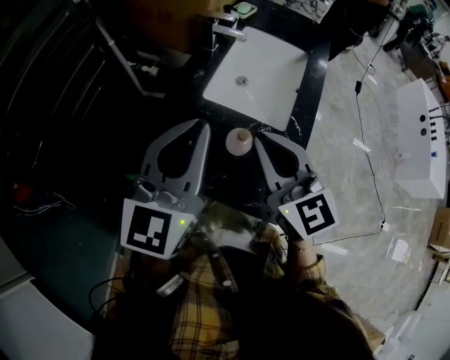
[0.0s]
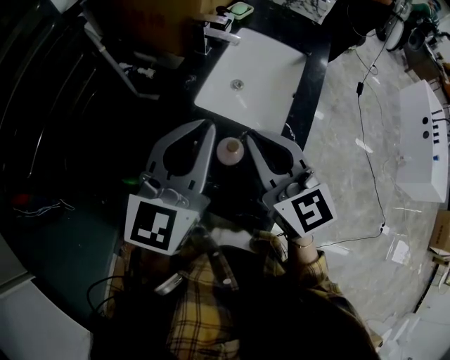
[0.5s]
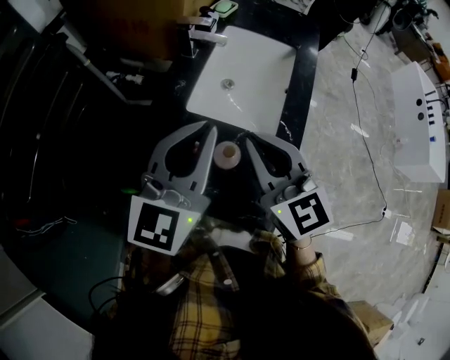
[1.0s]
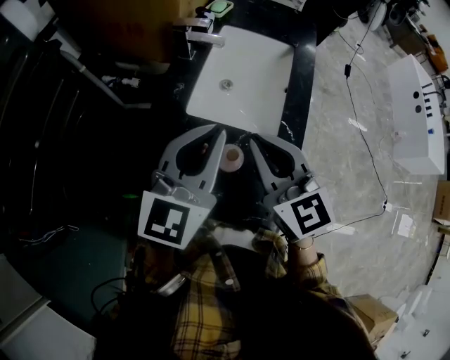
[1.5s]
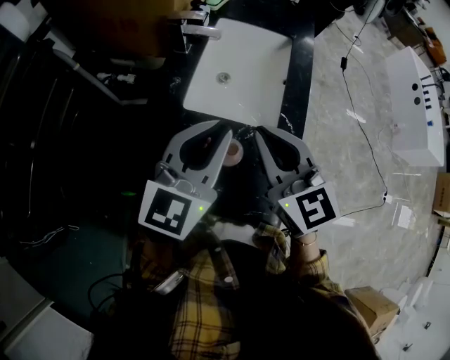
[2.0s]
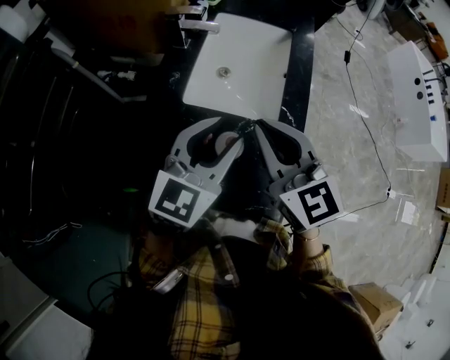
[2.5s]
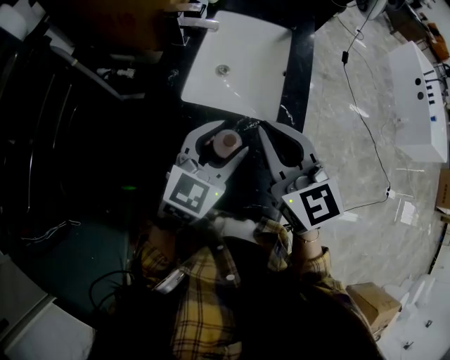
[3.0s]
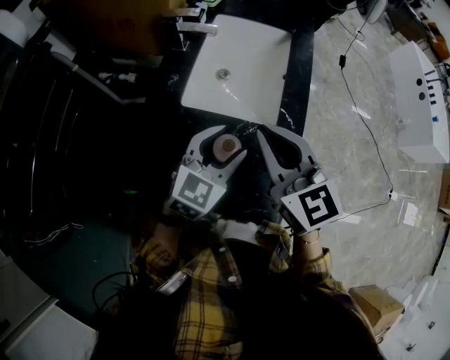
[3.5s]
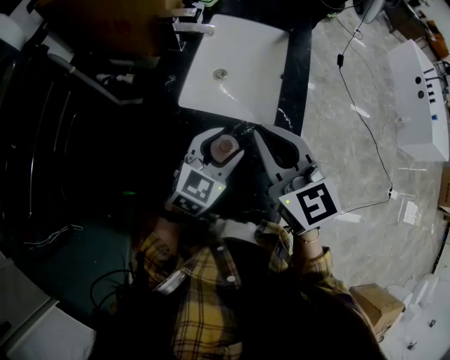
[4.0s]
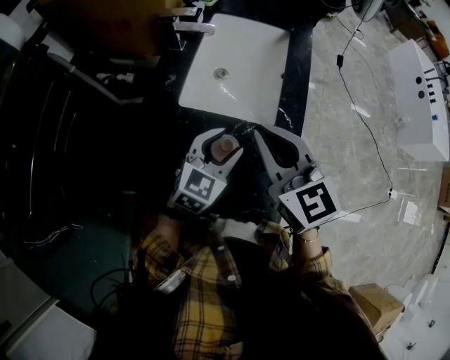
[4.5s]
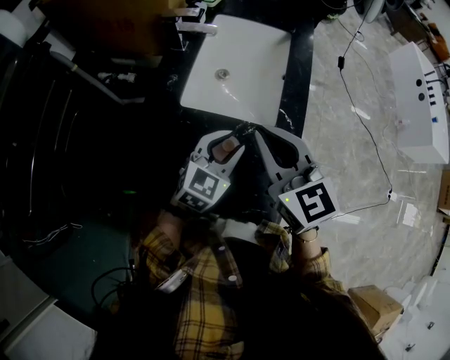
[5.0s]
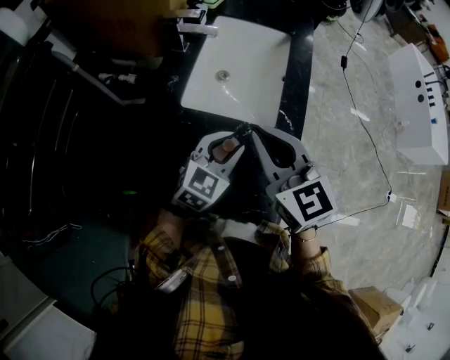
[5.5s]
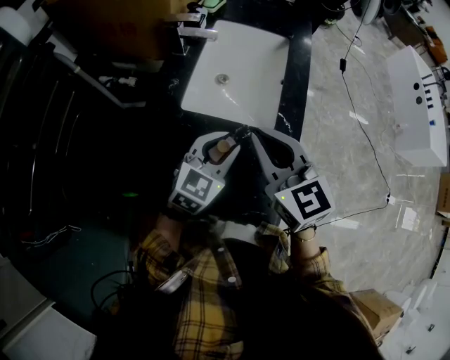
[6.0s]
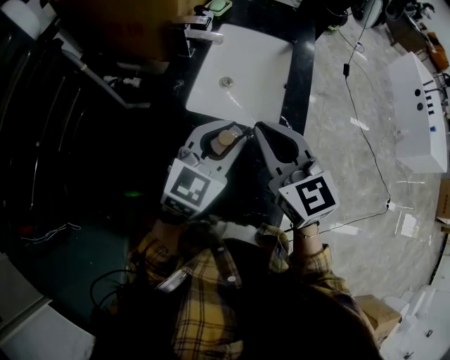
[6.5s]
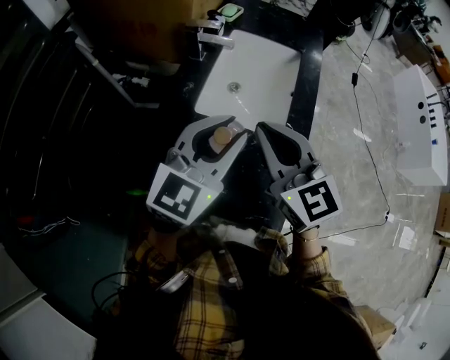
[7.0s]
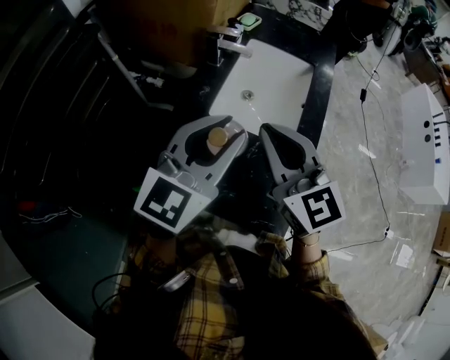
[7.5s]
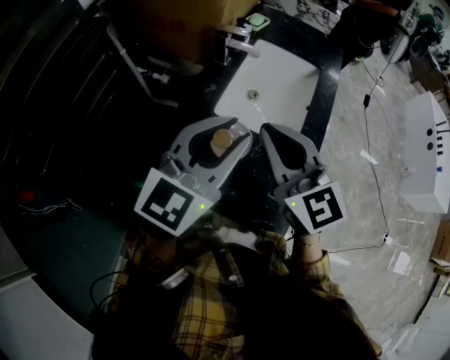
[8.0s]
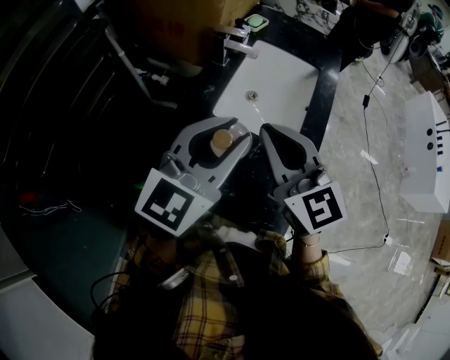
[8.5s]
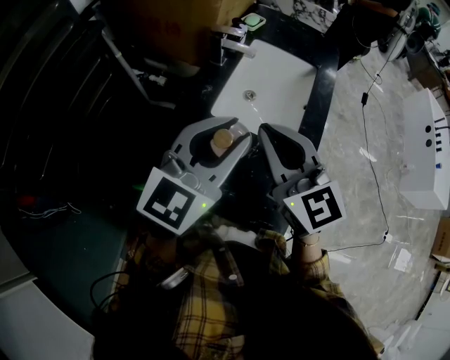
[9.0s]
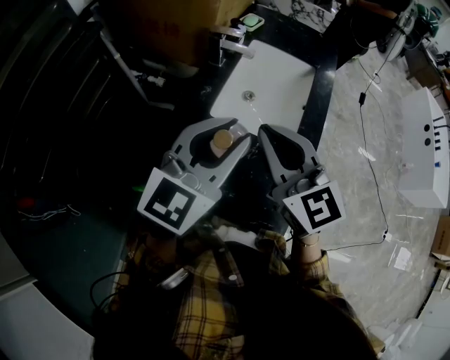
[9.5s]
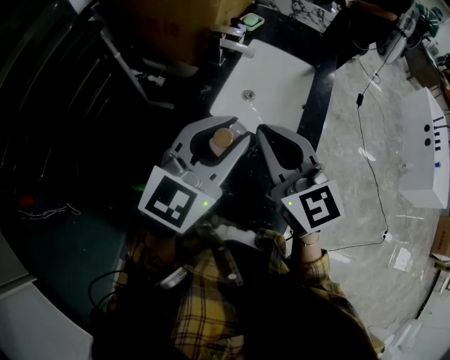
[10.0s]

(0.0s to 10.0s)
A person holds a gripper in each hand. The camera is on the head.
0.0s - 2.0s: The left gripper heads to the right, downward and forward, covering roughly 10 cm, while the right gripper goes some 5 cm forward.
2.0s - 4.0s: The left gripper goes some 15 cm downward, turns by about 20 degrees, and opens its fingers.
4.0s - 6.0s: The left gripper closes up.
6.0s - 8.0s: The right gripper is displaced upward and to the left by approximately 10 cm. Meanwhile the left gripper travels upward by about 20 cm.
8.0s - 10.0s: The two grippers keep their place.

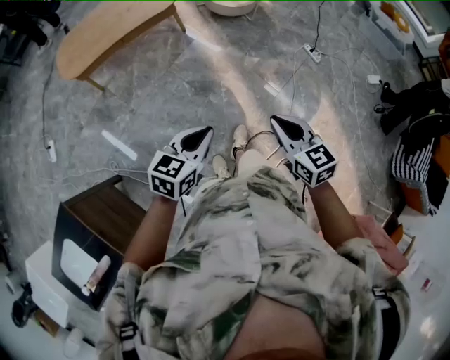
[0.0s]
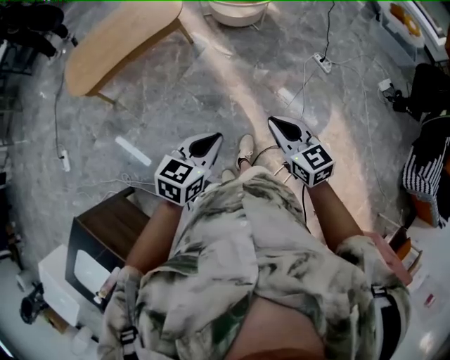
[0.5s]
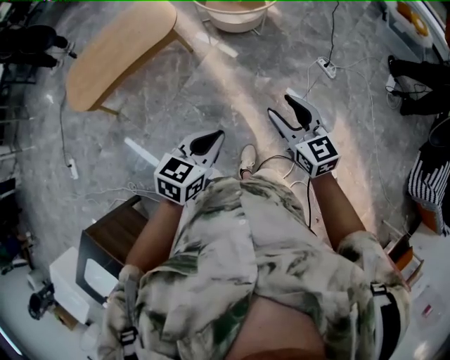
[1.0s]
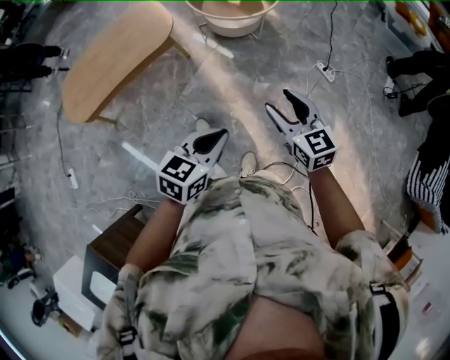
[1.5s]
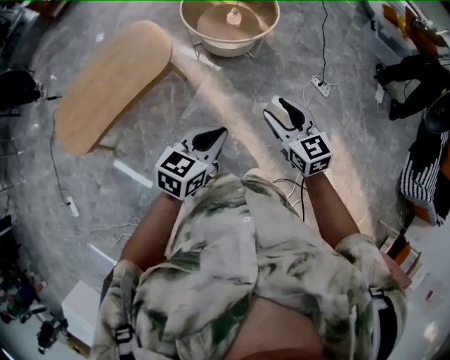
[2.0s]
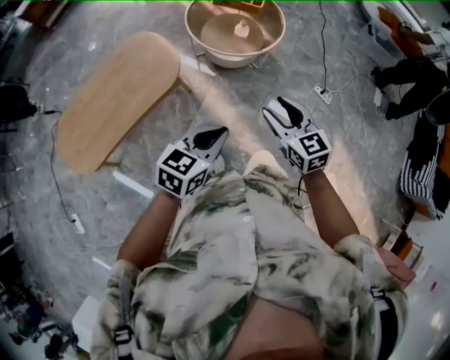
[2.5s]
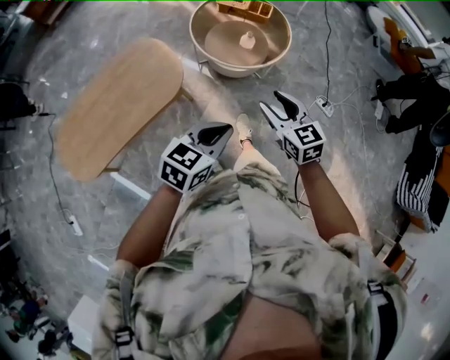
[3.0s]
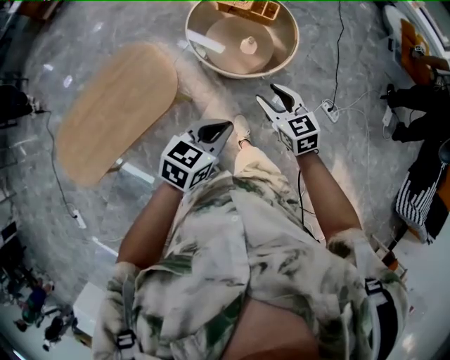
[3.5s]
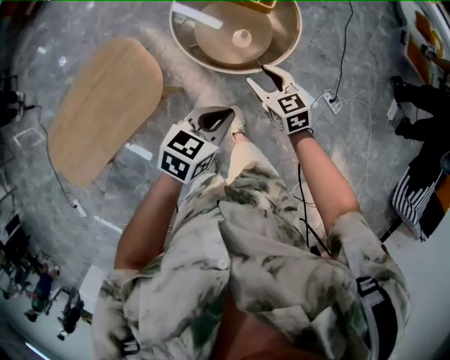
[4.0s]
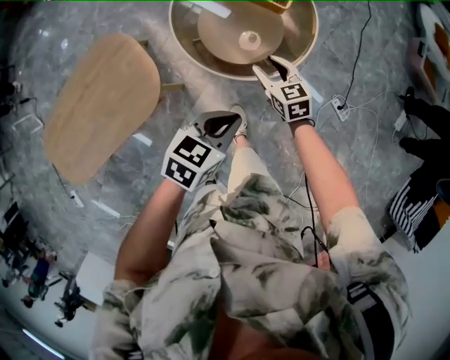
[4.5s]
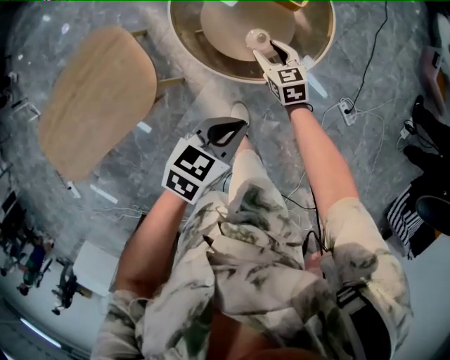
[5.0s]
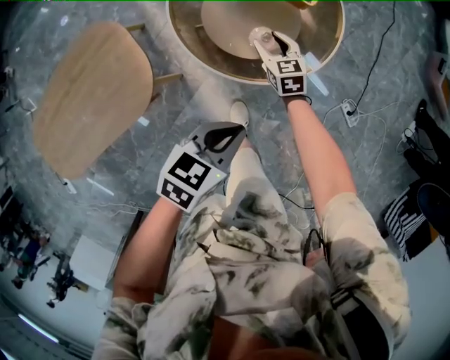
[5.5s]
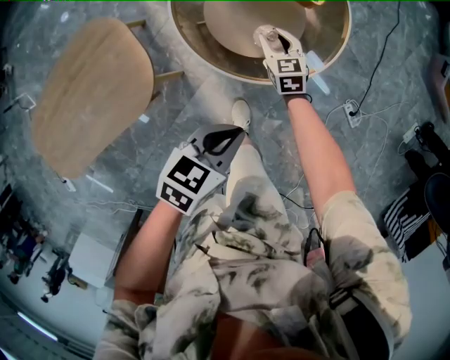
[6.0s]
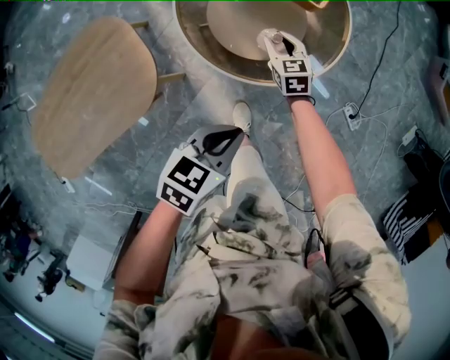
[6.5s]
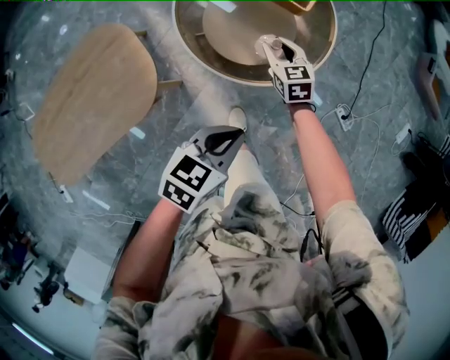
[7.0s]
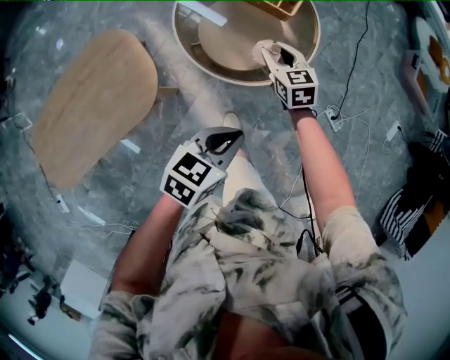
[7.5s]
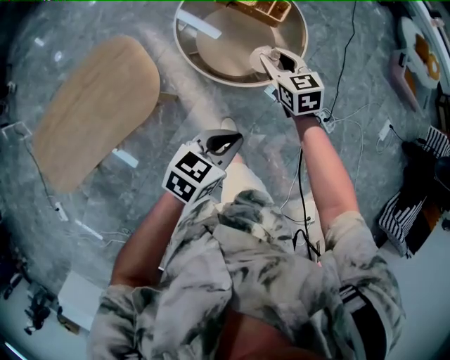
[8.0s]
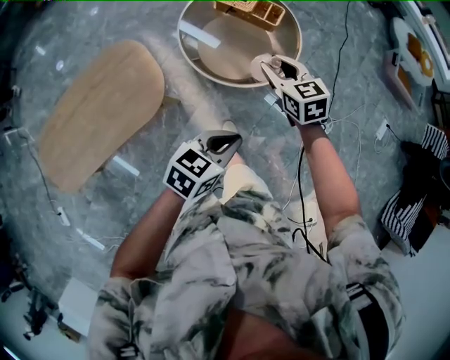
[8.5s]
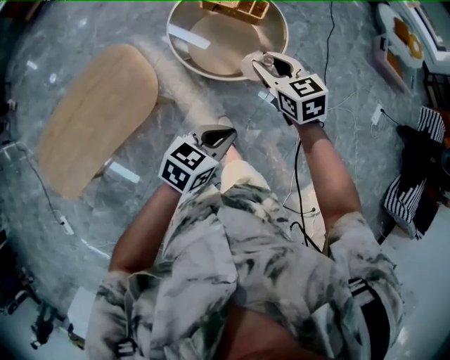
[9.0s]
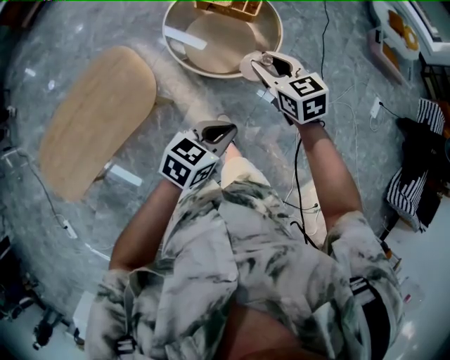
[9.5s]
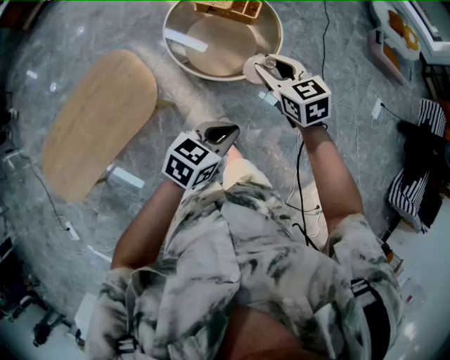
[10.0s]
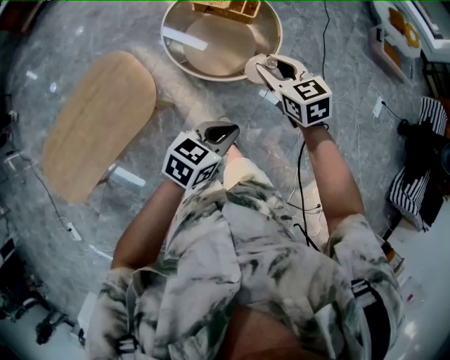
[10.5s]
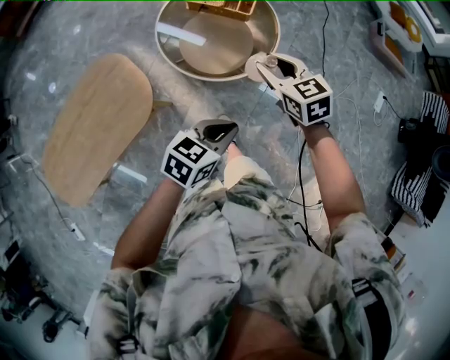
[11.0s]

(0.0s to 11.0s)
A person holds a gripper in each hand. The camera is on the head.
0.0s - 2.0s: The two grippers travel together, forward, roughly 50 cm. The right gripper opens its fingers.
2.0s - 3.5s: Both grippers move forward, roughly 35 cm.
3.5s - 5.5s: The left gripper heads forward and downward, covering some 35 cm. Meanwhile the right gripper shifts about 50 cm downward and forward.
5.5s - 7.5s: The left gripper moves backward and upward, about 15 cm, while the right gripper is displaced upward by about 20 cm.
7.5s - 9.0s: The right gripper heads upward and backward, covering some 25 cm. The left gripper is displaced backward and upward by some 15 cm.
9.0s - 11.0s: The right gripper goes approximately 5 cm to the right, while the left gripper changes place by about 5 cm.

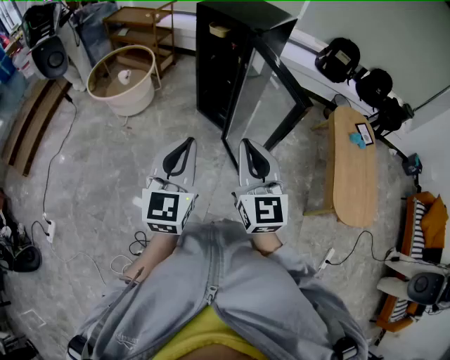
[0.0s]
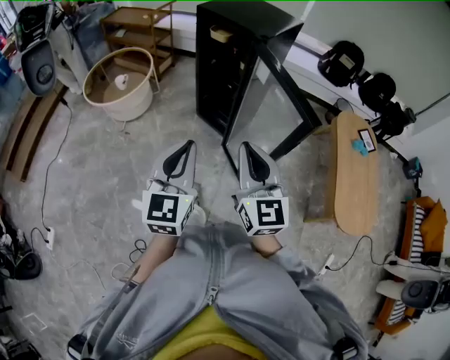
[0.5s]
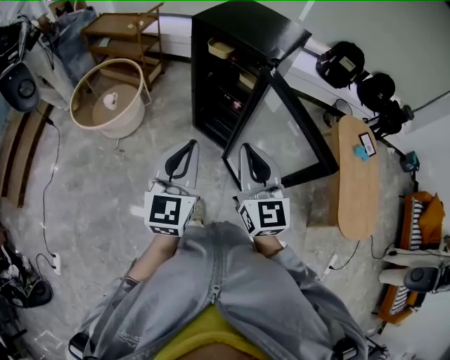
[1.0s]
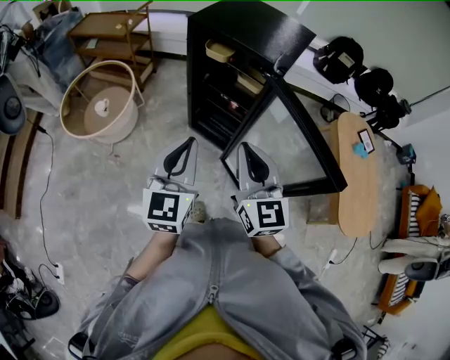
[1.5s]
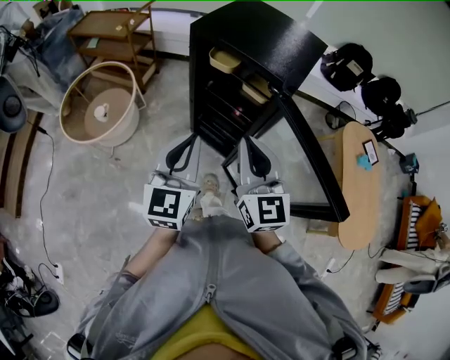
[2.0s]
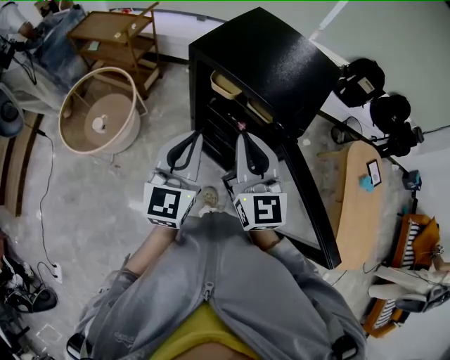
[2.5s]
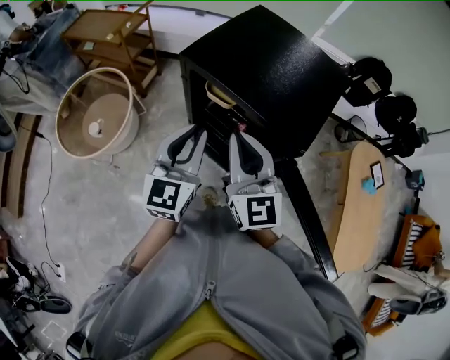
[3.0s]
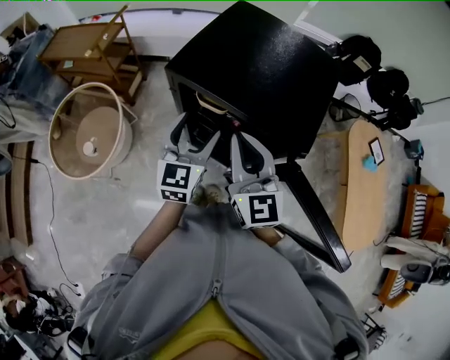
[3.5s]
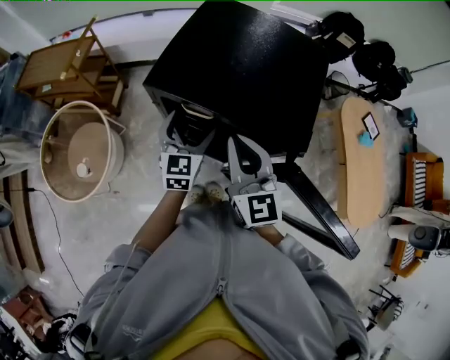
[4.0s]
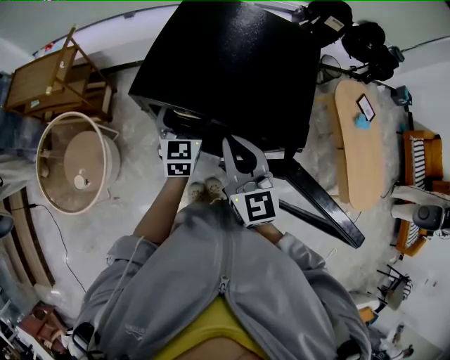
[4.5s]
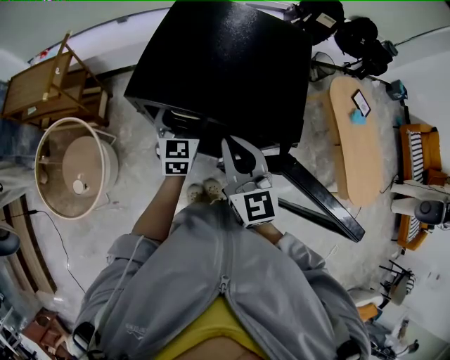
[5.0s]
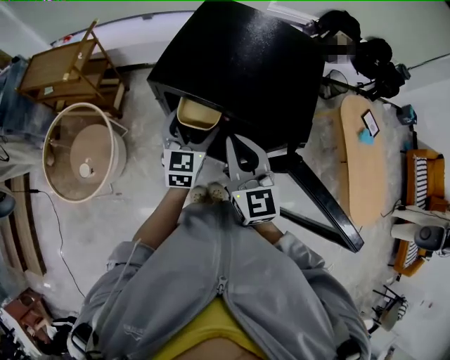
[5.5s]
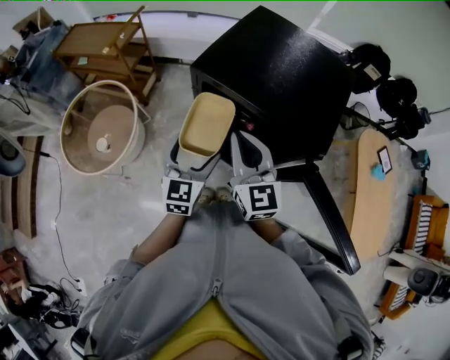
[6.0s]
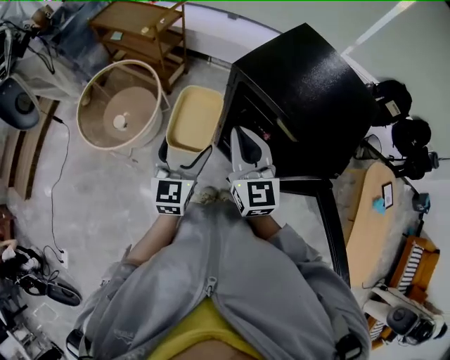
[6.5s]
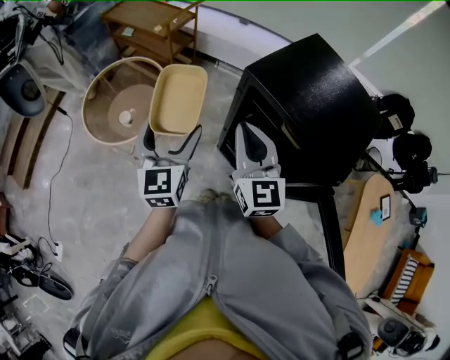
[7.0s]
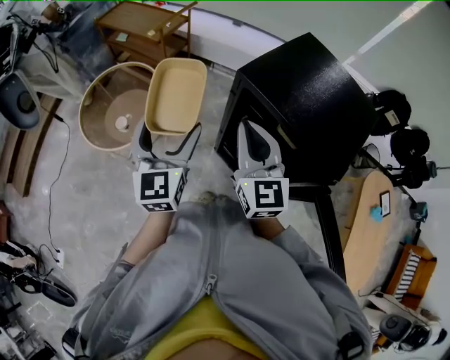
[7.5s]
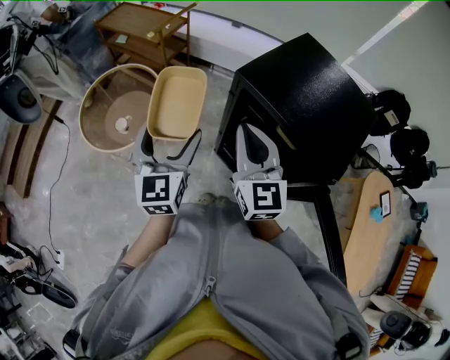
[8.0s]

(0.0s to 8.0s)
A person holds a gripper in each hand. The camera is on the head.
0.0s - 2.0s: The grippers both shift forward by roughly 40 cm.
2.0s - 4.0s: The left gripper heads forward and downward, covering roughly 35 cm, and opens its fingers. The right gripper shifts roughly 25 cm forward.
4.0s - 6.0s: The right gripper heads to the left, covering some 5 cm. Meanwhile the left gripper travels backward and to the left by approximately 15 cm.
6.0s - 8.0s: The right gripper moves to the left, approximately 5 cm, while the left gripper goes about 20 cm to the left and upward, and turns by about 30 degrees.
